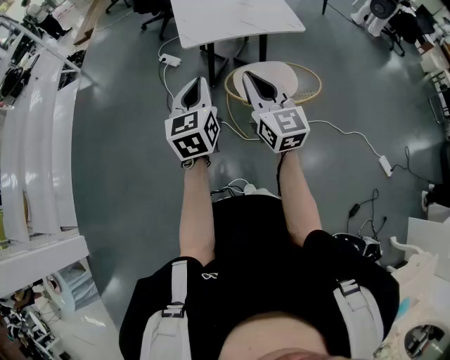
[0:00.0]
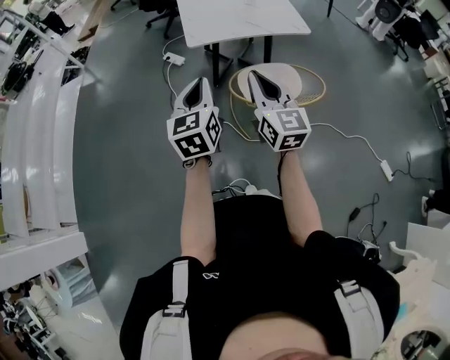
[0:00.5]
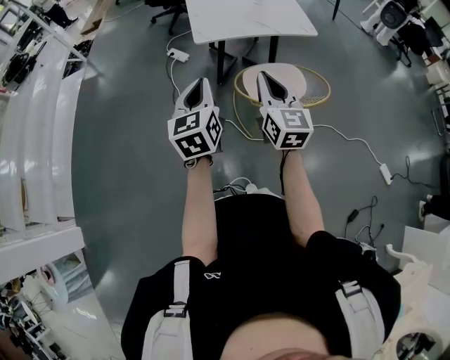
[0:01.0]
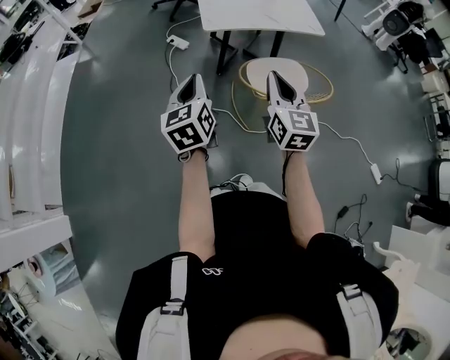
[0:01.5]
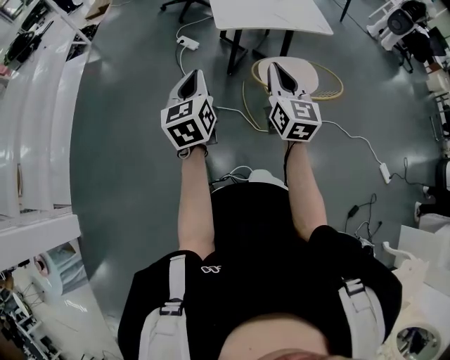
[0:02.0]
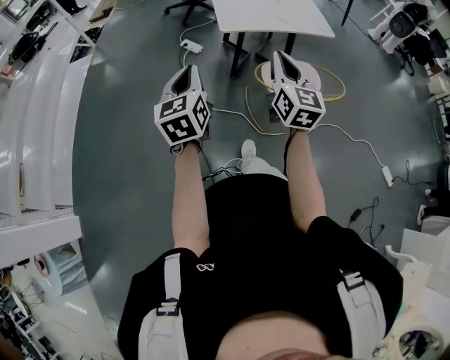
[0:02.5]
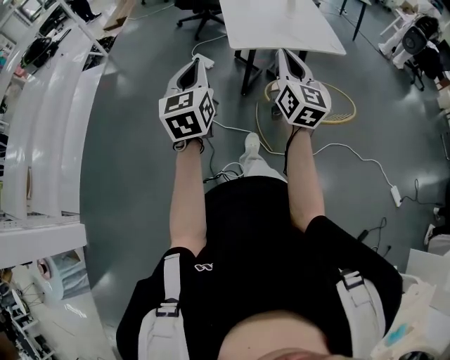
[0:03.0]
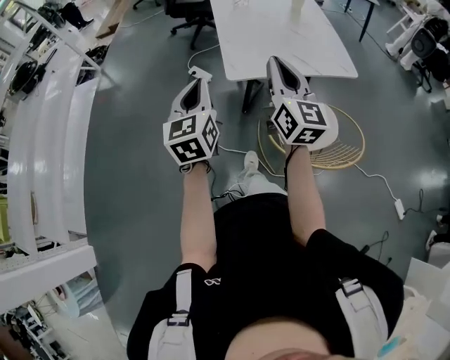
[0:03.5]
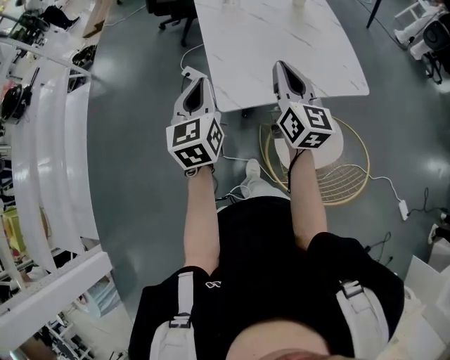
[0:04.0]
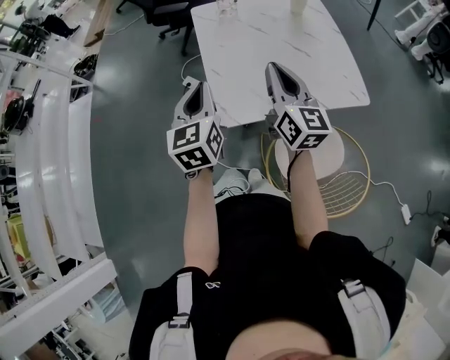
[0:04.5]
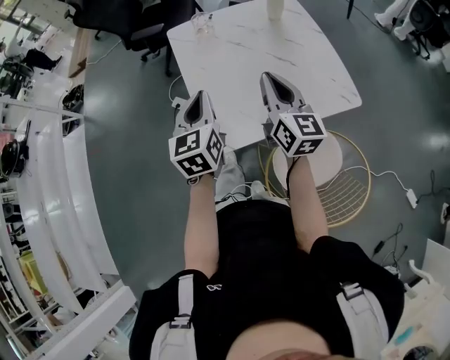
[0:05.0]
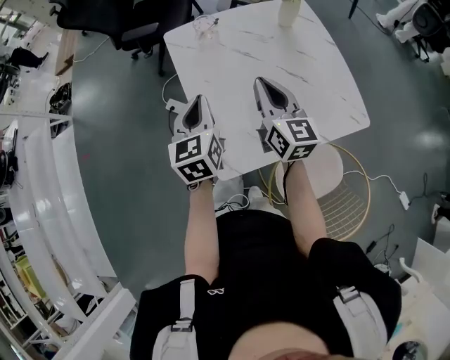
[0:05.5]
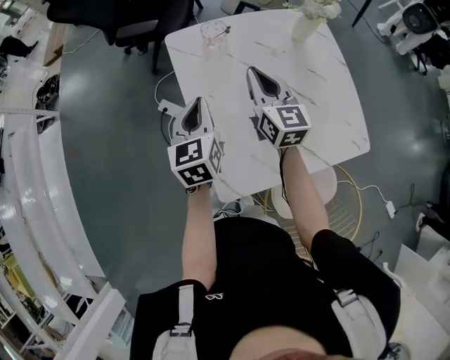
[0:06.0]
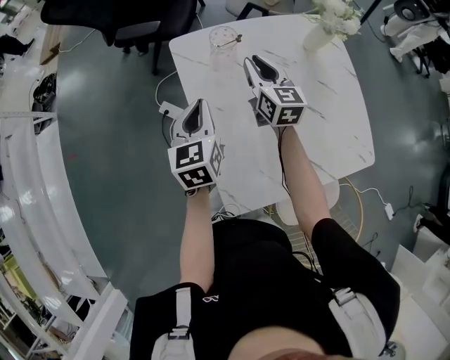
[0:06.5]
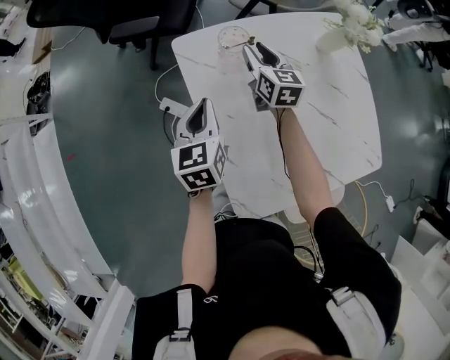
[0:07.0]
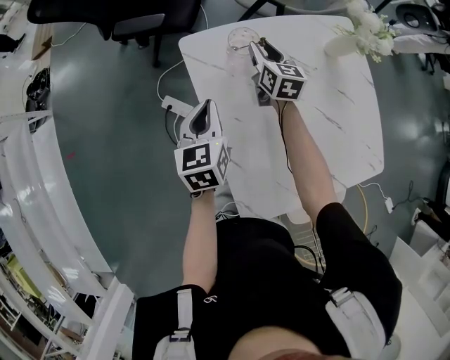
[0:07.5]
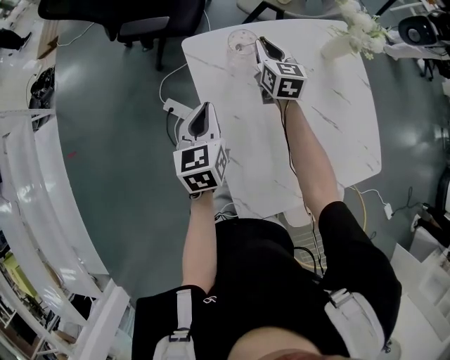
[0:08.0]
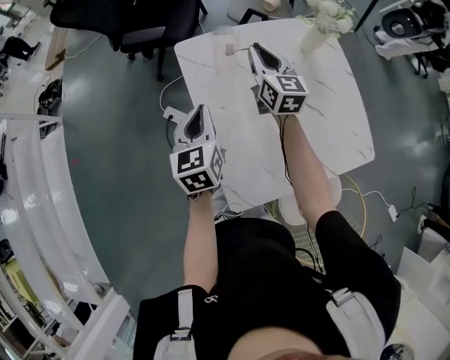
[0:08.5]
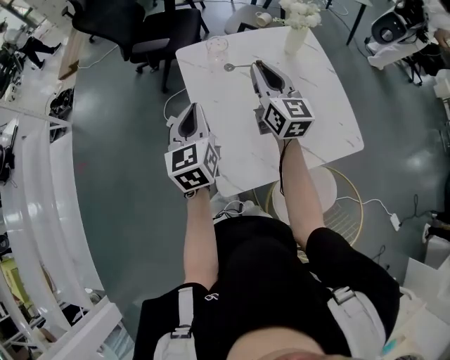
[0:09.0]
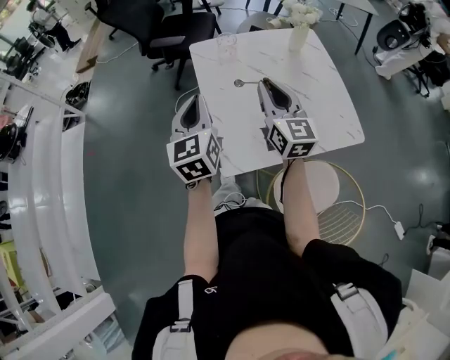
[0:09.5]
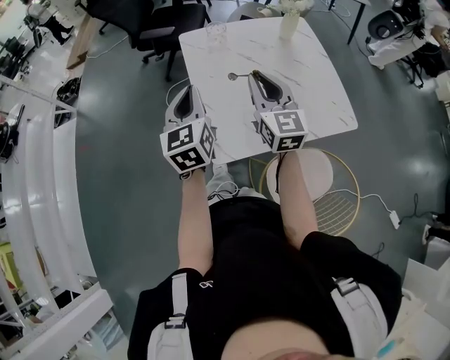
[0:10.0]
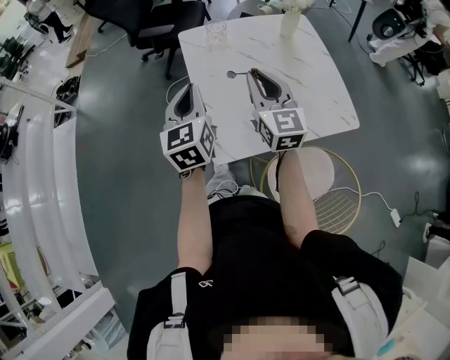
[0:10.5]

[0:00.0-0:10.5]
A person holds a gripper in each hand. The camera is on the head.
0:00.0 to 0:02.0: The left gripper travels to the left by approximately 15 cm. Meanwhile the right gripper is displaced to the left by approximately 5 cm.
0:02.0 to 0:04.0: The two grippers travel together, forward, roughly 50 cm.
0:04.0 to 0:06.5: Both grippers travel together forward, approximately 40 cm.
0:08.5 to 0:10.5: The right gripper shifts some 30 cm backward. Meanwhile the left gripper travels backward and upward by some 20 cm.

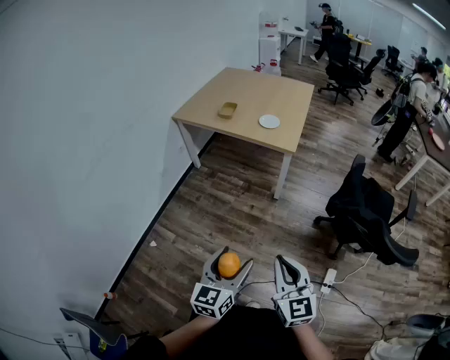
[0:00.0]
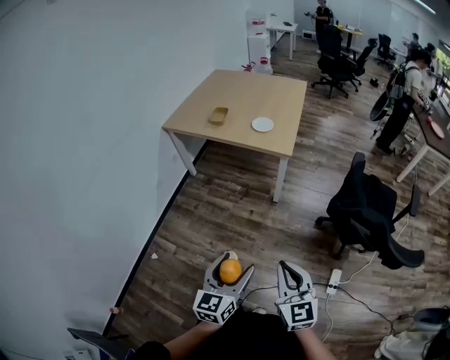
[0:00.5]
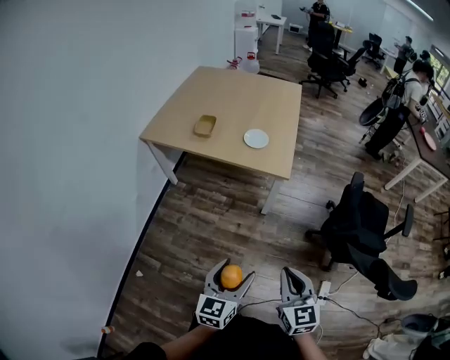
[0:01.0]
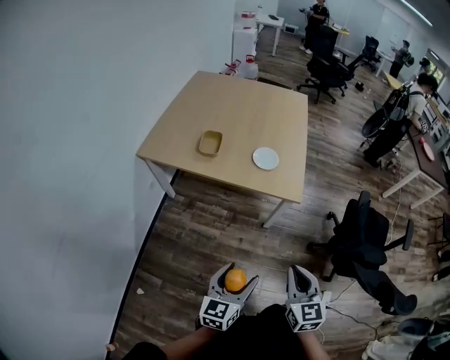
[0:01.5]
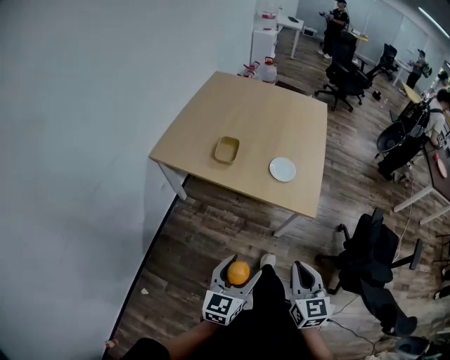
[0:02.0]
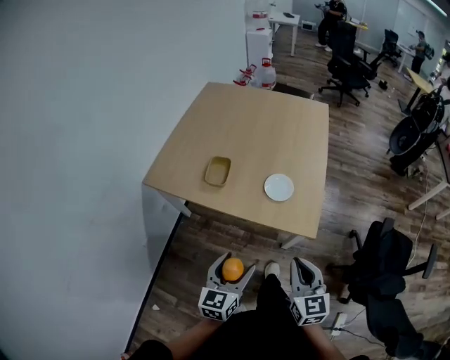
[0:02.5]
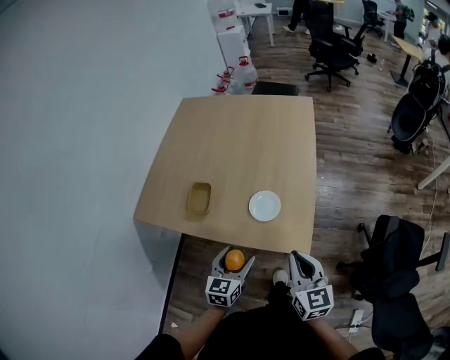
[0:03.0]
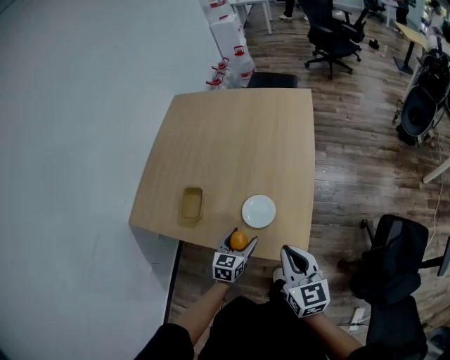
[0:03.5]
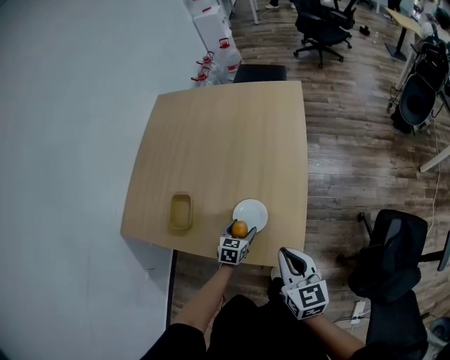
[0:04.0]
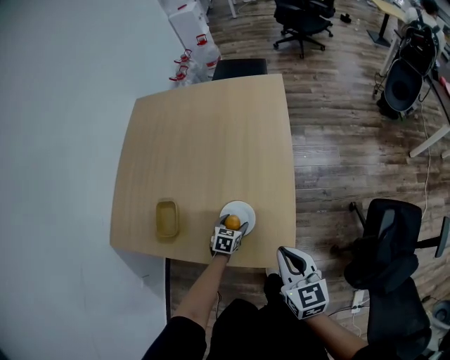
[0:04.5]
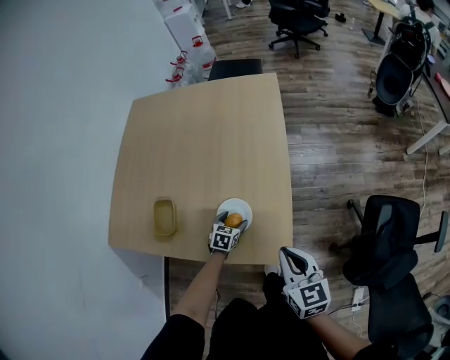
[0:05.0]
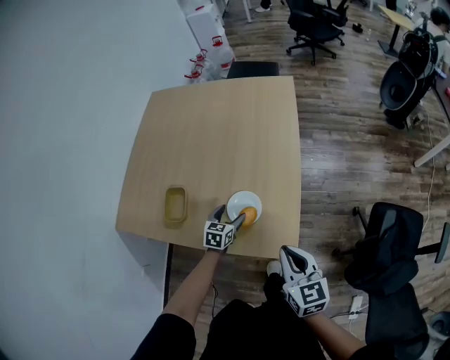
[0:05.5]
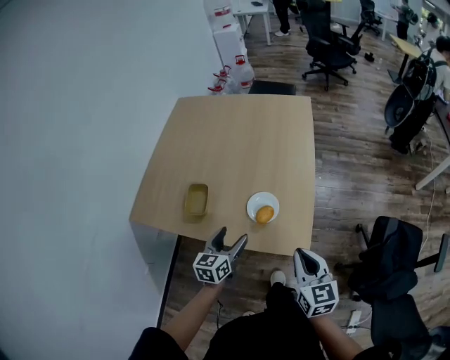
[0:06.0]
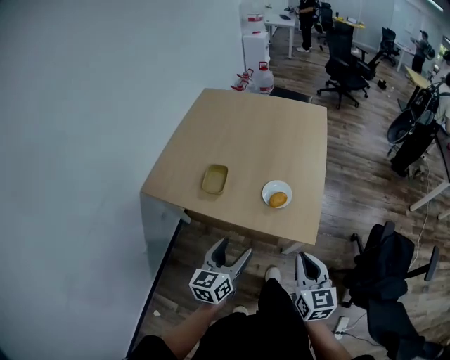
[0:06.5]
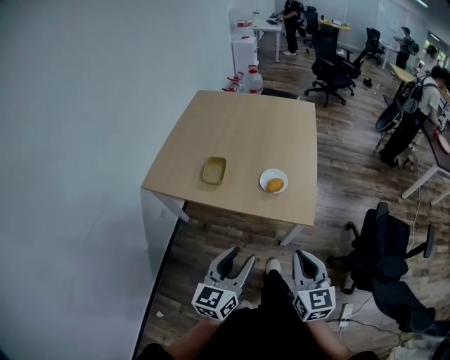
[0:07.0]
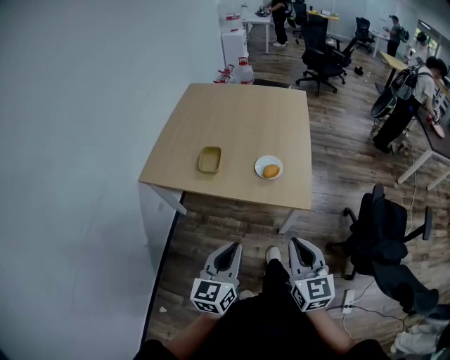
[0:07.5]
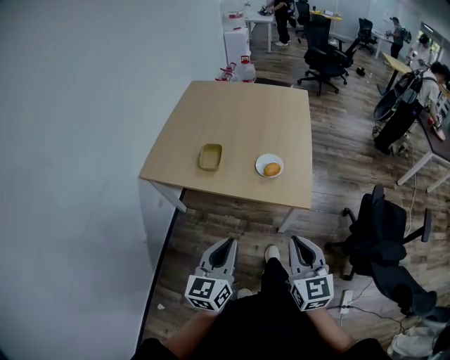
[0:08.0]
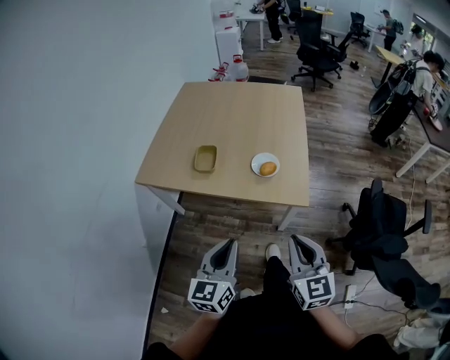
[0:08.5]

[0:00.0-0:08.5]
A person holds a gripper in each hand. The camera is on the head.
0:00.0 to 0:02.0: The two grippers travel together, forward, approximately 50 cm.
0:02.0 to 0:04.0: The left gripper is displaced forward and downward by roughly 50 cm, and tilts its fingers approximately 30 degrees downward. Meanwhile the right gripper shifts about 35 cm forward.
0:04.0 to 0:06.5: The left gripper moves backward and upward, some 35 cm, and tilts its fingers about 30 degrees upward; the right gripper moves backward, roughly 20 cm.
0:06.5 to 0:08.5: The right gripper moves backward, about 10 cm. Meanwhile the left gripper goes approximately 15 cm backward and upward, and closes its fingers.

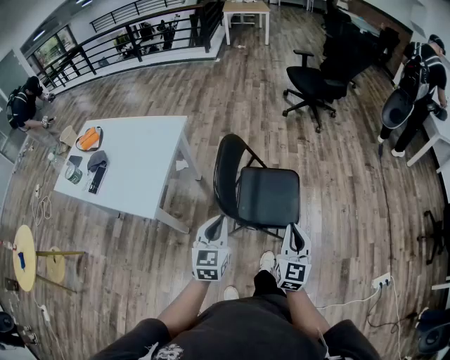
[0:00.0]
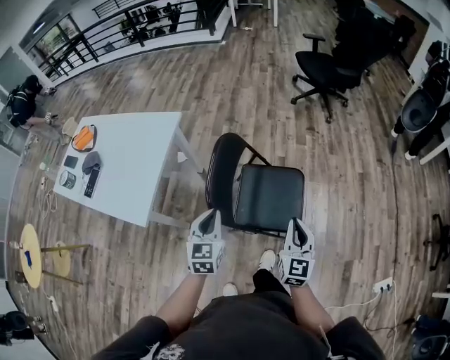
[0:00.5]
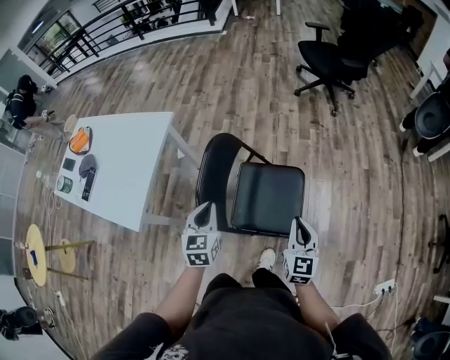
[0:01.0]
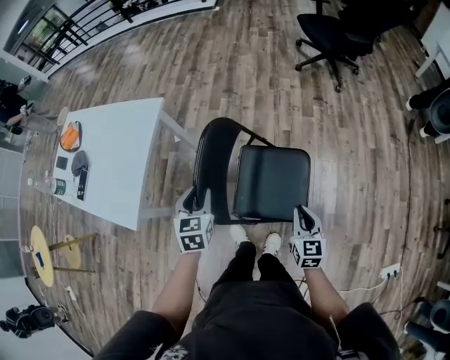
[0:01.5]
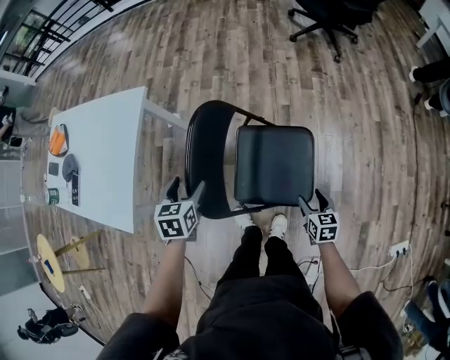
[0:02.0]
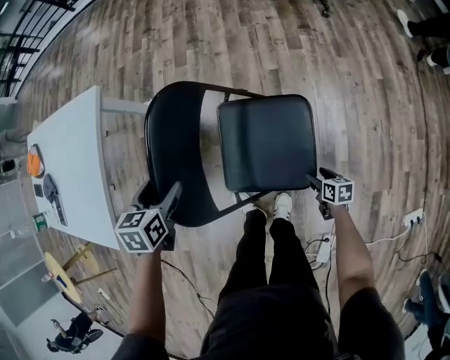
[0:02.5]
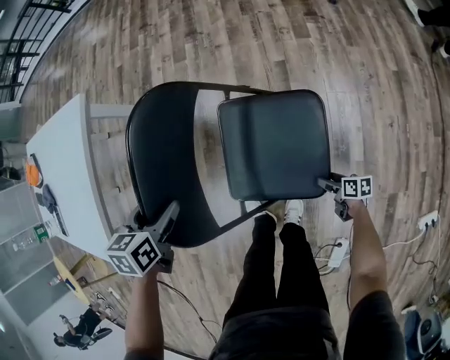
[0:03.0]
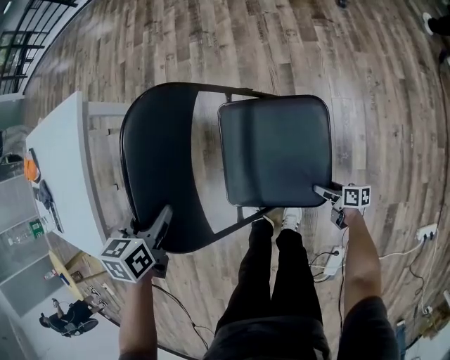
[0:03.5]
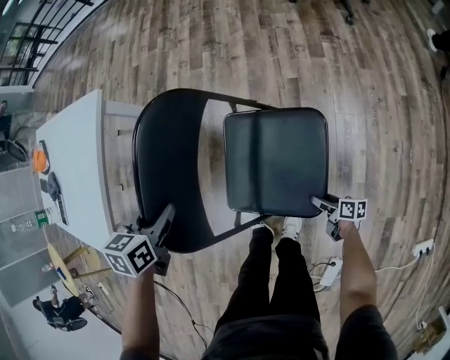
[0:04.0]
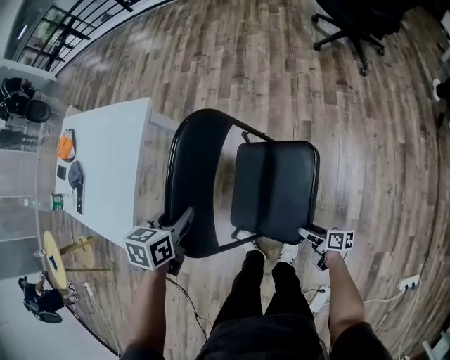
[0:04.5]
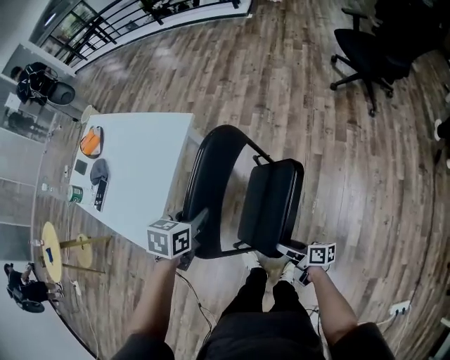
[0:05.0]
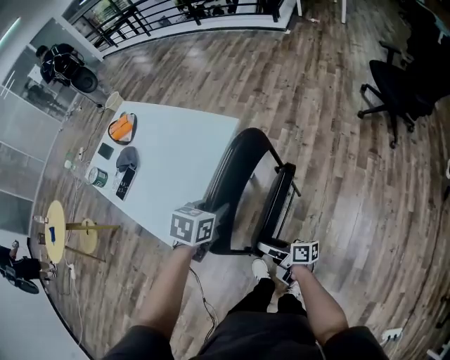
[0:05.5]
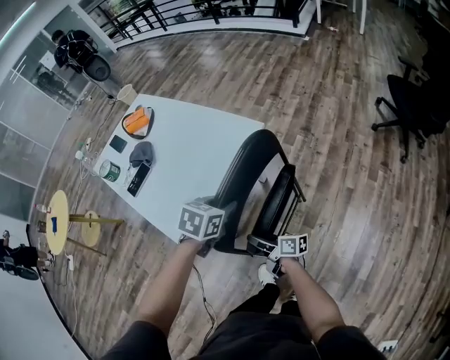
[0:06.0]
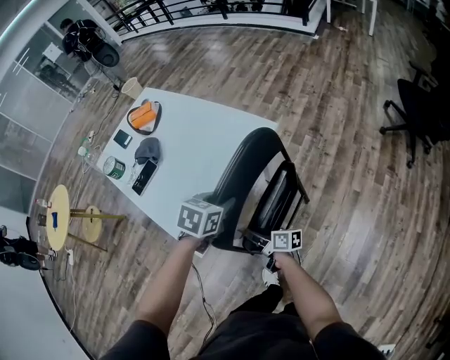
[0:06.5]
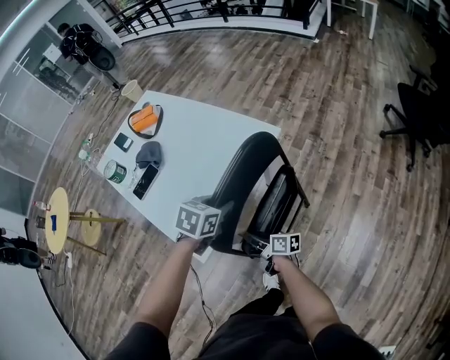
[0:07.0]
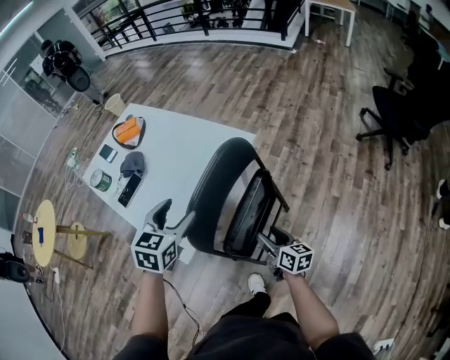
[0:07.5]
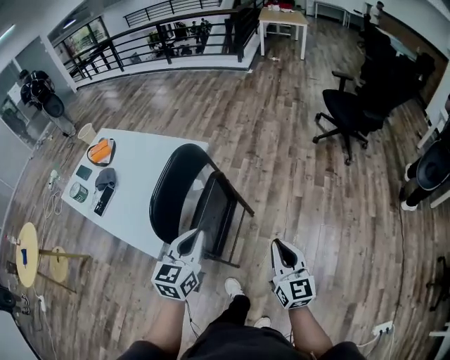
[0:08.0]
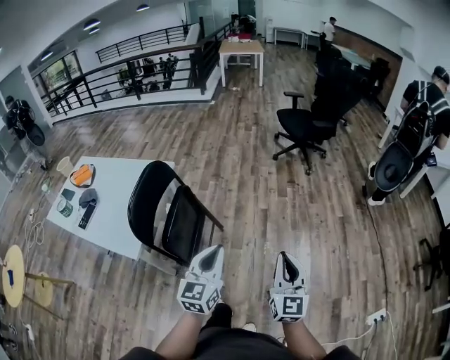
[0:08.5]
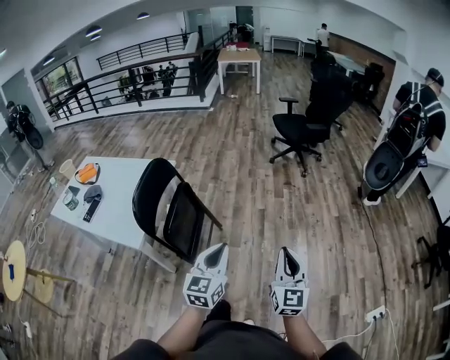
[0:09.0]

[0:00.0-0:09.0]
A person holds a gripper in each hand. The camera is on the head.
0:00.0 to 0:02.0: The right gripper shifts roughly 40 cm downward, forward and to the right, tilts its fingers some 40 degrees downward, and opens, while the left gripper shifts some 30 cm forward and downward, tips its fingers downward by roughly 30 degrees, and opens up.
0:02.0 to 0:04.5: The left gripper reaches roughly 10 cm downward, then returns, and closes its fingers; the right gripper travels downward by about 10 cm, and turns by roughly 60 degrees.
0:04.5 to 0:07.0: The right gripper shifts approximately 60 cm to the left and forward, changes its angle by roughly 30 degrees, and closes its fingers. Meanwhile the left gripper moves to the left and forward, some 30 cm.
0:07.0 to 0:09.0: The pair of grippers is taken about 60 cm. The left gripper tilts its fingers approximately 50 degrees upward, and opens and closes again, while the right gripper turns by roughly 100 degrees, and closes up.
